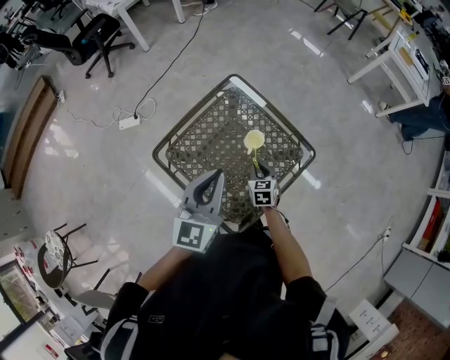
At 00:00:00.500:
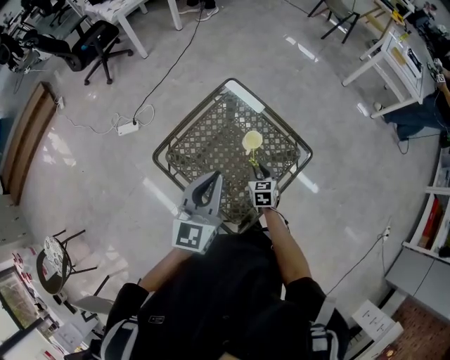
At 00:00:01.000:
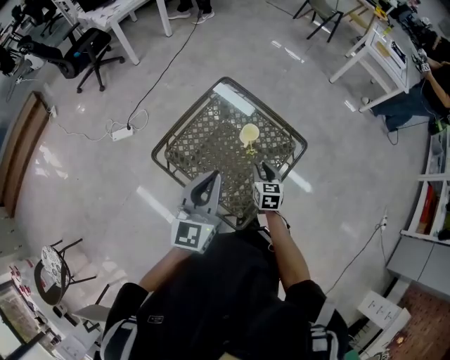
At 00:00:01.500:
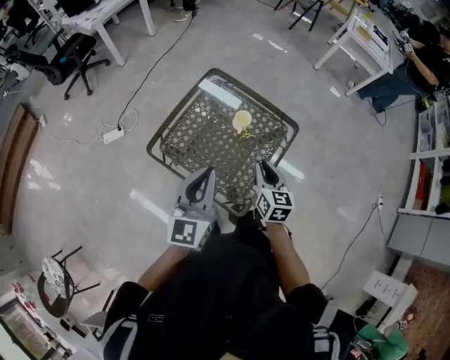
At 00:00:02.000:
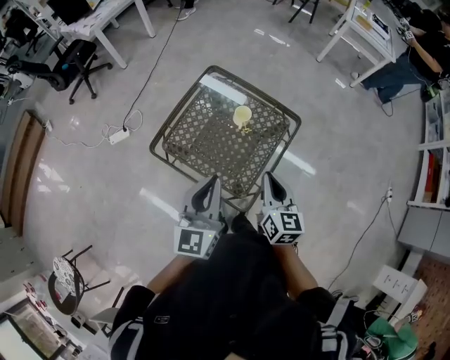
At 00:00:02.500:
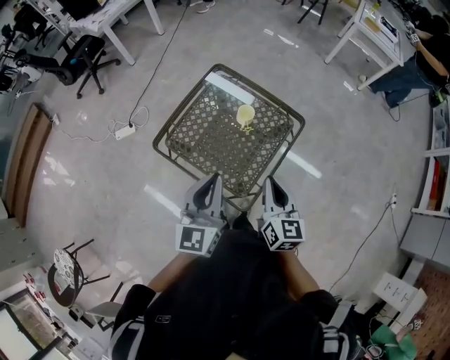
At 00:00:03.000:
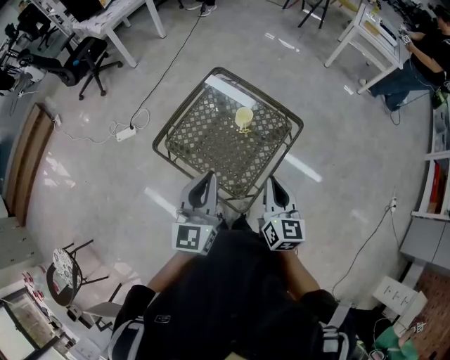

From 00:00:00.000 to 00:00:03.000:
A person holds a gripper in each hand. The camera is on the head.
From 00:00:00.000 to 00:00:01.500: The right gripper heads upward and backward, covering roughly 25 cm, and swivels roughly 30 degrees. Meanwhile the left gripper shifts roughly 15 cm backward.
From 00:00:01.500 to 00:00:03.000: The left gripper ends up roughly 5 cm from where it was. Meanwhile the right gripper moves upward and backward, roughly 10 cm.

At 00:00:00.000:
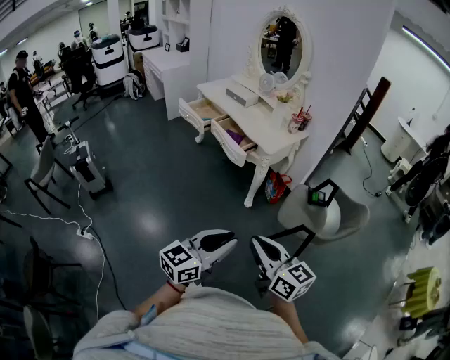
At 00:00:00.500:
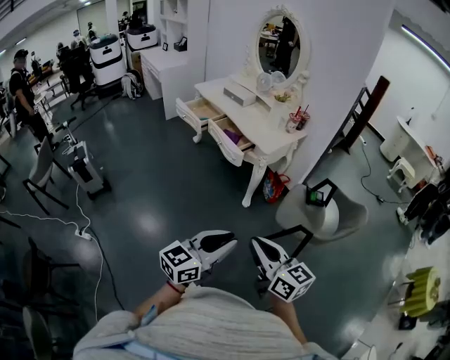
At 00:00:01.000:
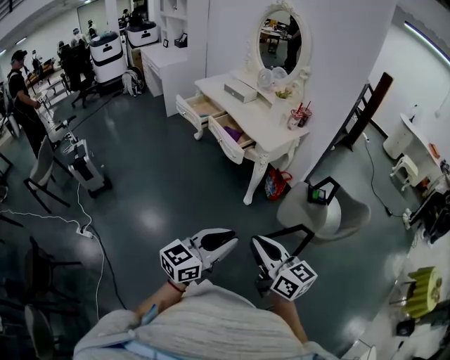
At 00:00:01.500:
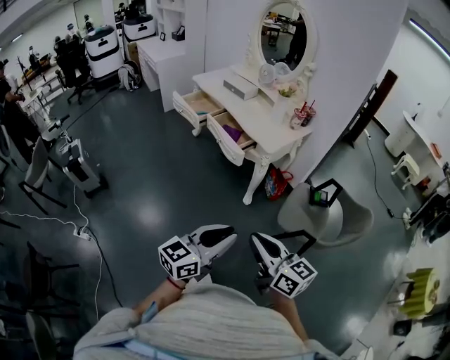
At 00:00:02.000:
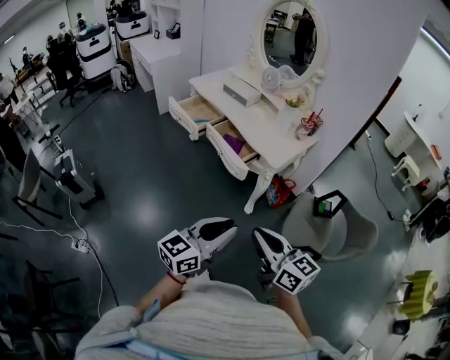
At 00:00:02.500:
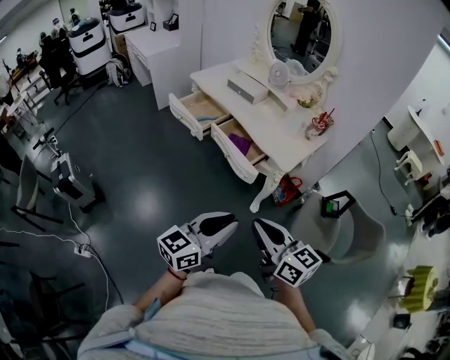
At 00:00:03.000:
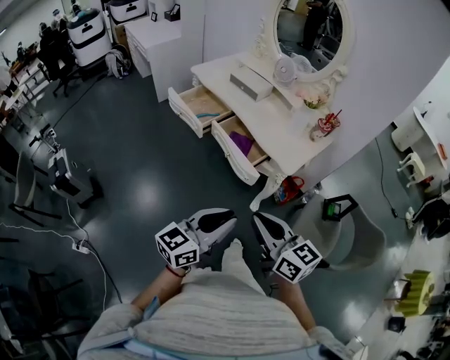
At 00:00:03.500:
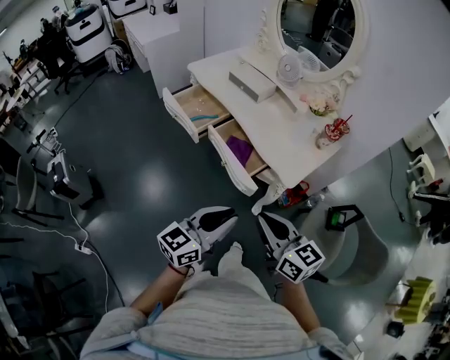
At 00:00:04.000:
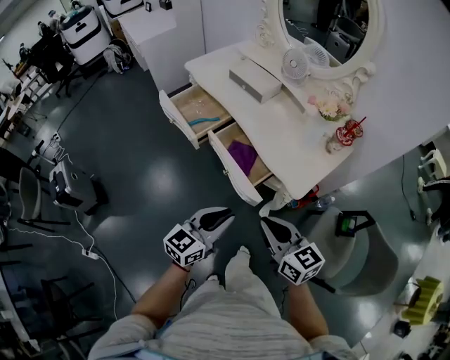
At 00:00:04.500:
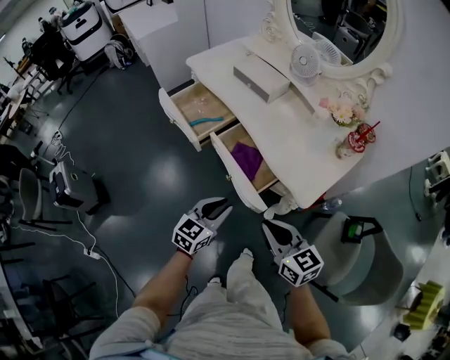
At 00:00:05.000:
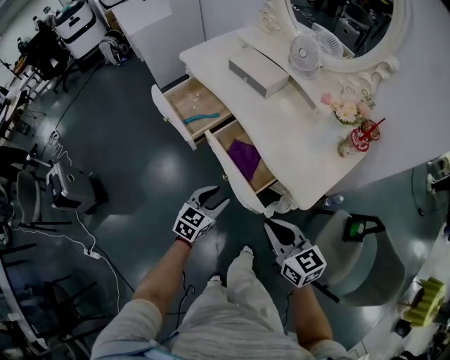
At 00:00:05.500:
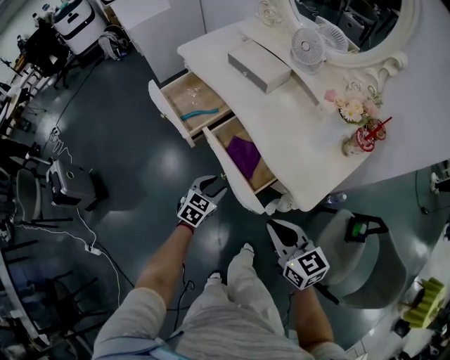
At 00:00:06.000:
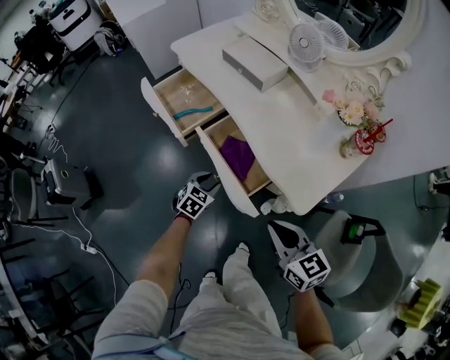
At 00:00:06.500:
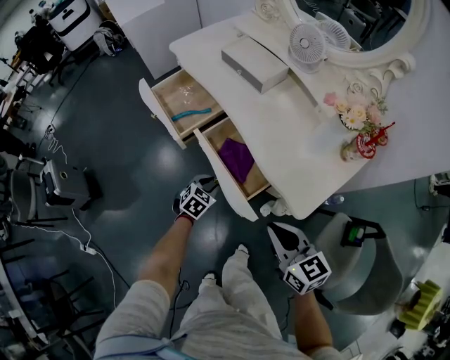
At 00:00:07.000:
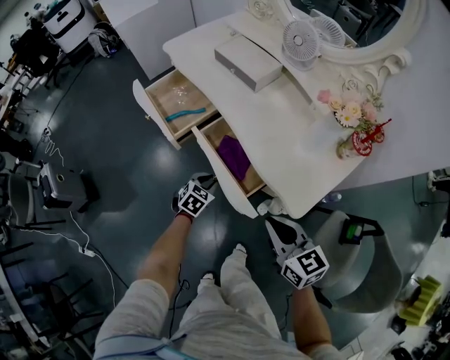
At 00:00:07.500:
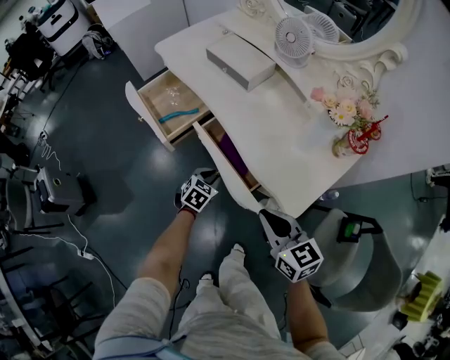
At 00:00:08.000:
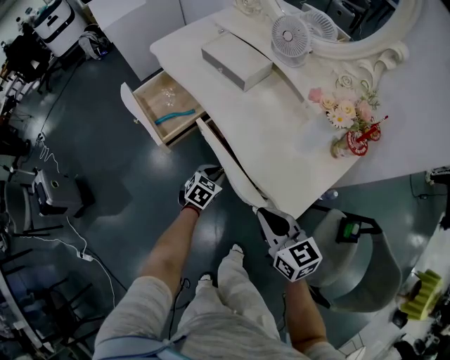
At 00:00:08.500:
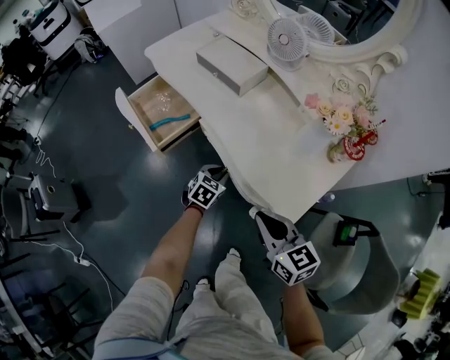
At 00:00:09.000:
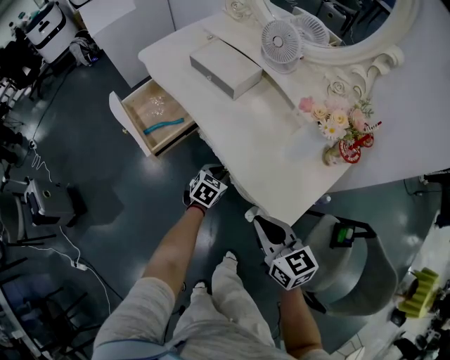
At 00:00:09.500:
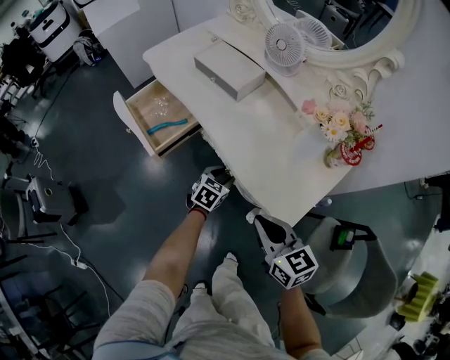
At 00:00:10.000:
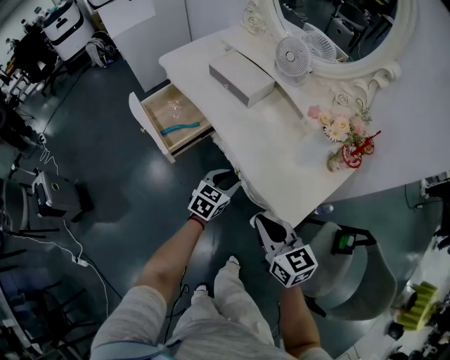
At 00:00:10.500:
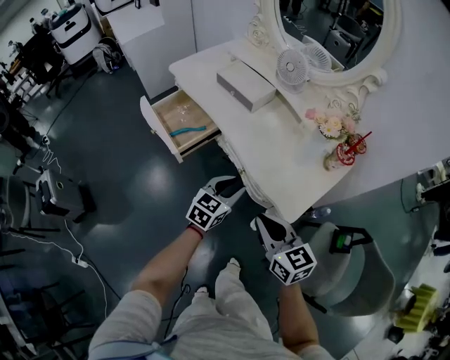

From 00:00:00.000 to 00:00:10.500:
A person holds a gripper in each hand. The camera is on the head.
From 00:00:00.000 to 00:00:02.000: Both grippers travel together forward, about 25 cm.
From 00:00:02.000 to 00:00:04.000: The two grippers go approximately 30 cm forward.
From 00:00:04.000 to 00:00:06.500: The left gripper shifts about 35 cm downward and forward, and angles its fingers downward, by some 40 degrees; the right gripper shifts about 15 cm forward, downward and to the right.
From 00:00:06.500 to 00:00:08.500: The left gripper travels to the right and forward by approximately 15 cm, while the right gripper shifts approximately 5 cm forward.
From 00:00:08.500 to 00:00:10.500: The right gripper heads upward, covering approximately 5 cm; the left gripper travels upward and backward by about 20 cm, and turns by roughly 20 degrees.

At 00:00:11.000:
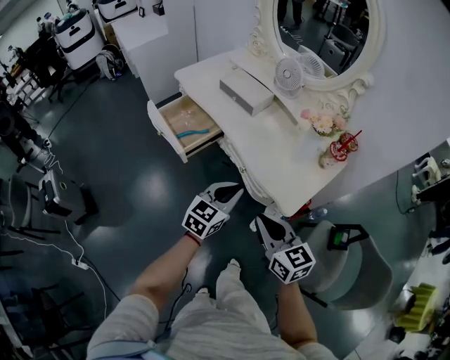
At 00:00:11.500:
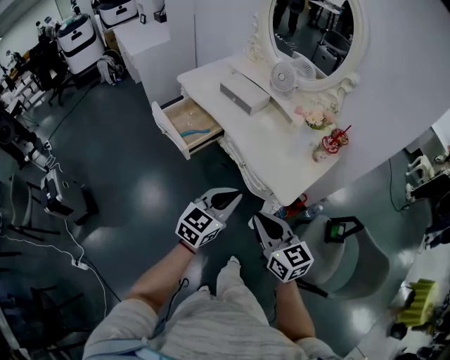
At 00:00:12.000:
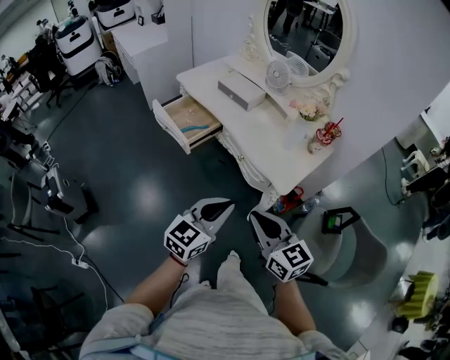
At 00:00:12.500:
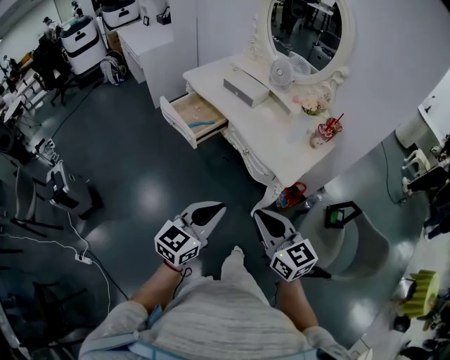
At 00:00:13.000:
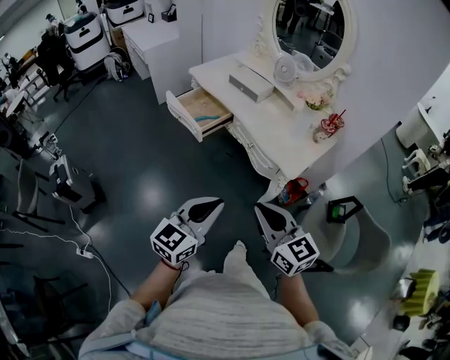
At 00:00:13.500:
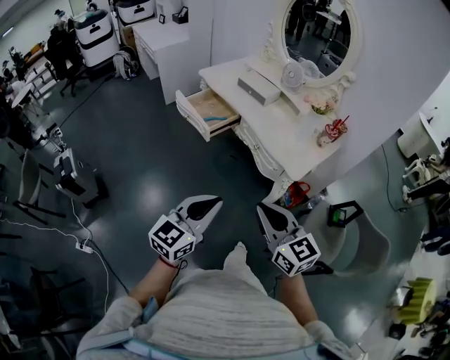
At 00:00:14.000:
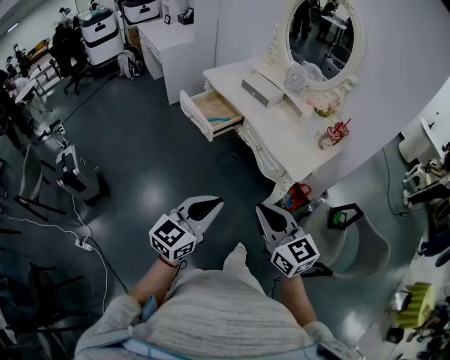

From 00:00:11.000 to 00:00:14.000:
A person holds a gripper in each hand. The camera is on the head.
From 00:00:11.000 to 00:00:12.500: The two grippers go approximately 25 cm backward and upward.
From 00:00:12.500 to 00:00:14.000: Both grippers move backward and to the left, roughly 10 cm.

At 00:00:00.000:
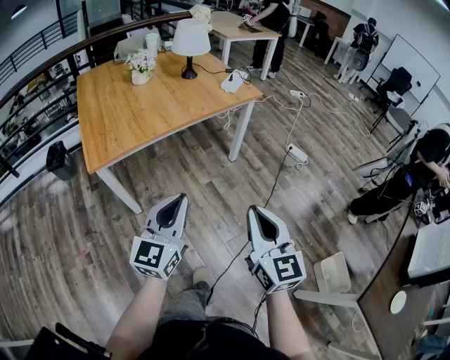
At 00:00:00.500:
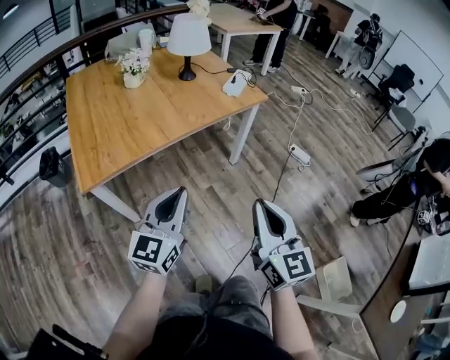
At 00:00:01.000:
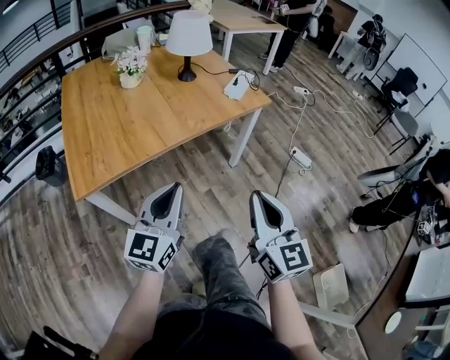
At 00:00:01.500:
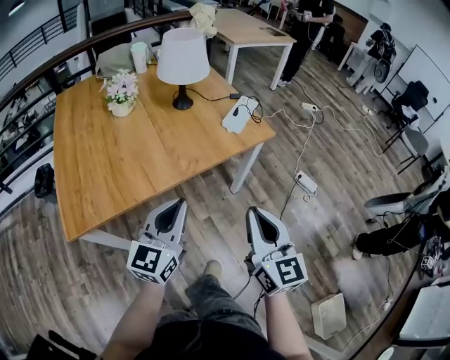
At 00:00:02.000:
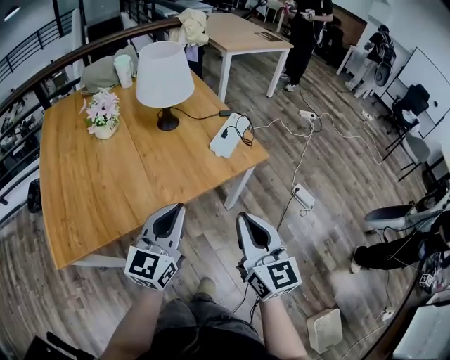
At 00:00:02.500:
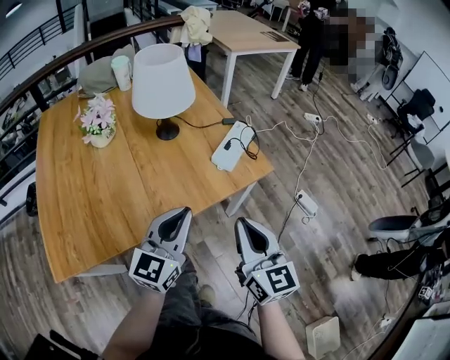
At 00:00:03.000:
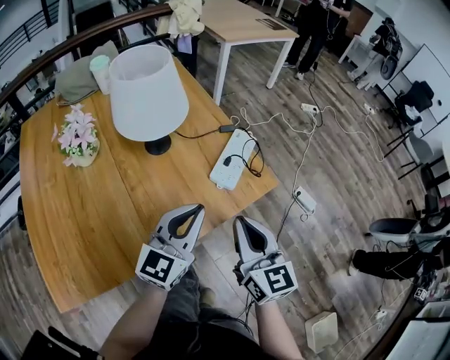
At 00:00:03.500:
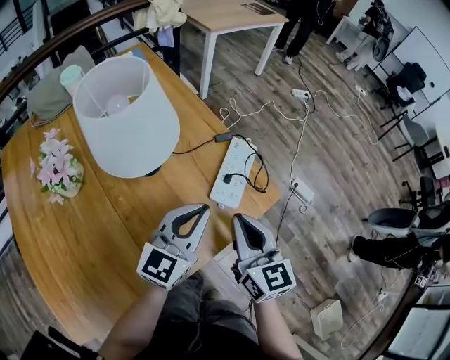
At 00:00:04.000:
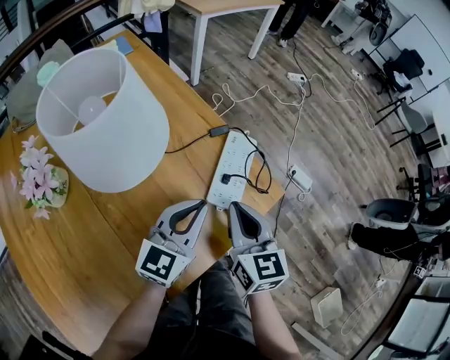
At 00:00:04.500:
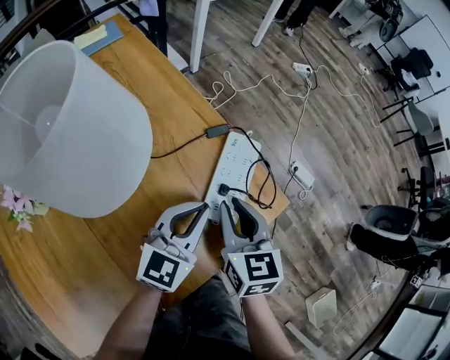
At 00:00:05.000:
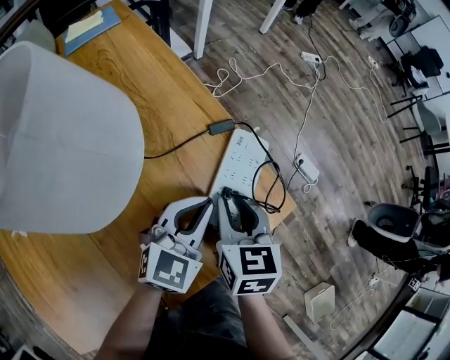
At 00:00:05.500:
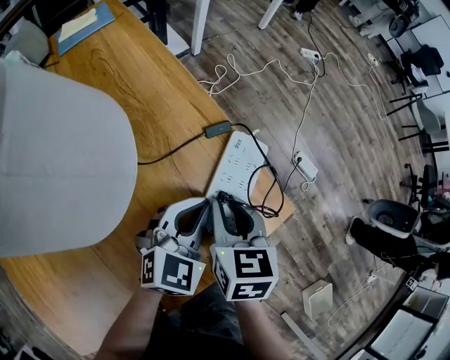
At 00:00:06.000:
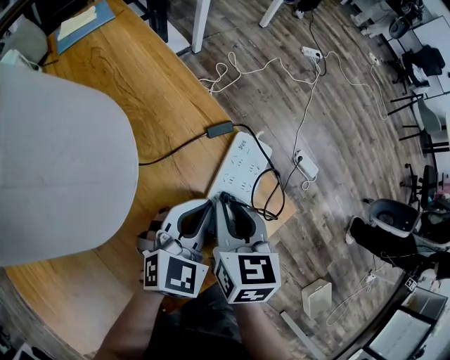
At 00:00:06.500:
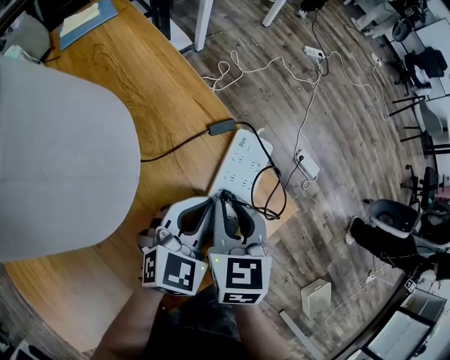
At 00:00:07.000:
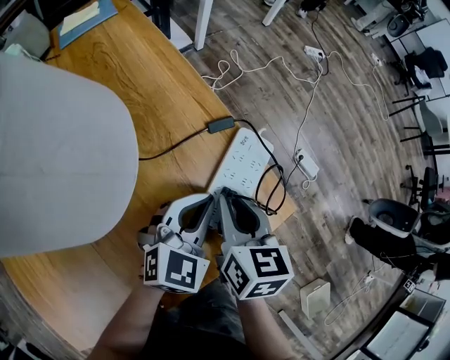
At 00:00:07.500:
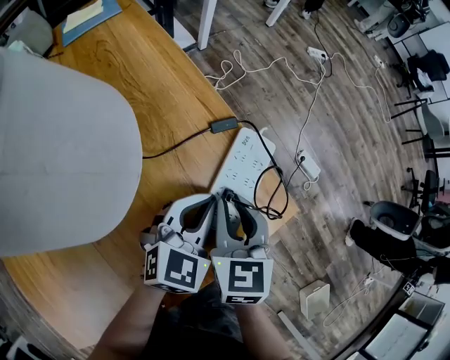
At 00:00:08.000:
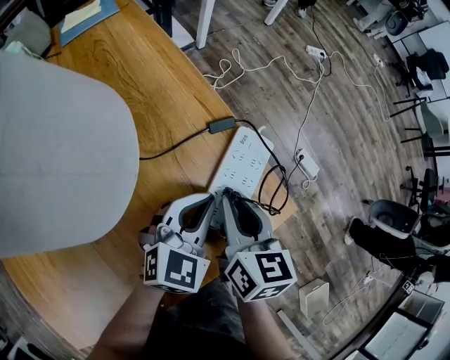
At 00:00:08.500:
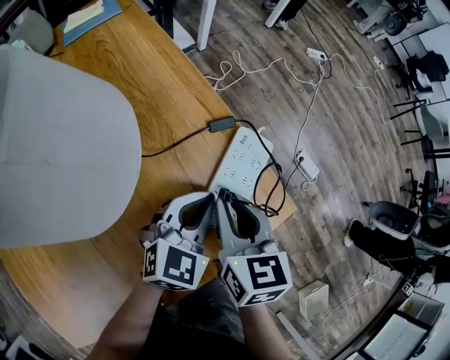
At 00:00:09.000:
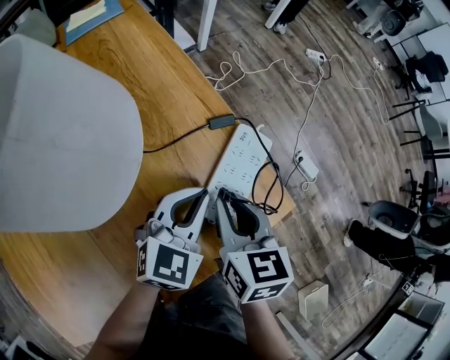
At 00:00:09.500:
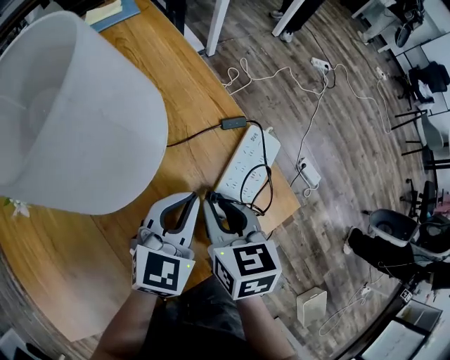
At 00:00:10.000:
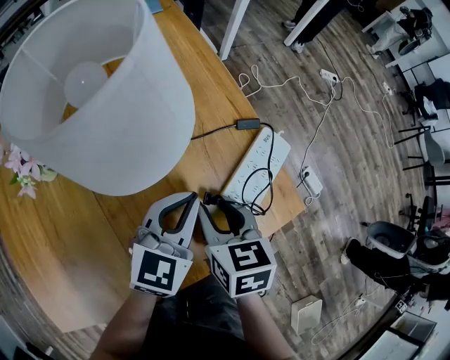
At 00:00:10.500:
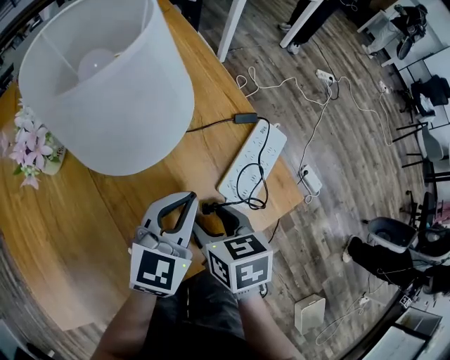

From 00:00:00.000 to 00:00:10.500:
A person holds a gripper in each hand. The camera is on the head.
From 00:00:00.000 to 00:00:02.000: The two grippers travel together, forward, approximately 40 cm.
From 00:00:02.000 to 00:00:04.000: Both grippers travel together forward, about 25 cm. The right gripper rotates about 20 degrees, while the left gripper changes its angle by roughly 20 degrees.
From 00:00:04.000 to 00:00:06.500: The right gripper shifts some 10 cm forward and downward. Meanwhile the left gripper shifts some 10 cm downward and forward, and rotates about 30 degrees.
From 00:00:08.500 to 00:00:10.500: The right gripper moves backward and to the left, approximately 15 cm, changes its angle by approximately 30 degrees, and opens up, while the left gripper heads to the left, upward and backward, covering approximately 10 cm.
